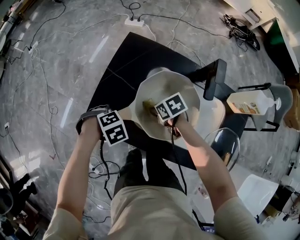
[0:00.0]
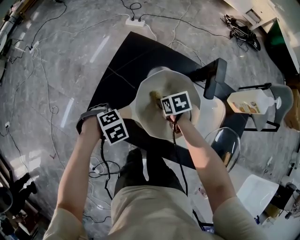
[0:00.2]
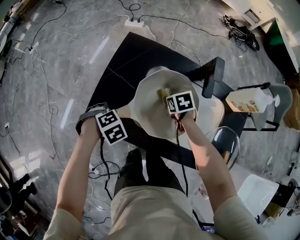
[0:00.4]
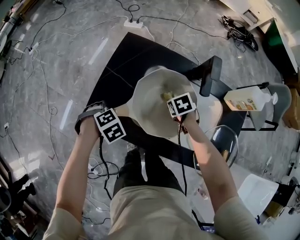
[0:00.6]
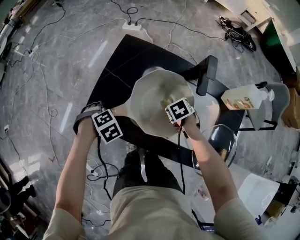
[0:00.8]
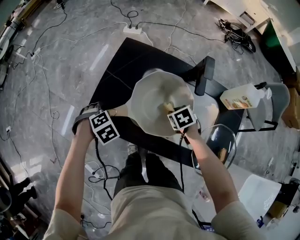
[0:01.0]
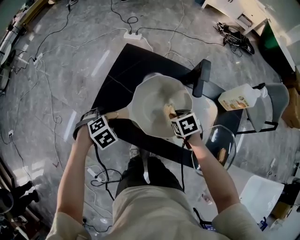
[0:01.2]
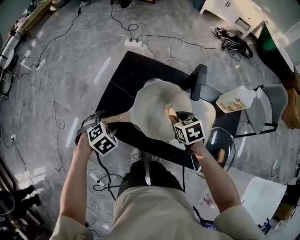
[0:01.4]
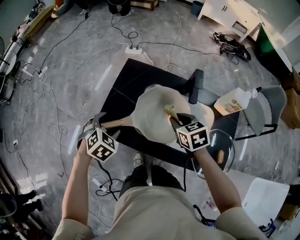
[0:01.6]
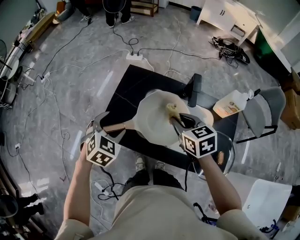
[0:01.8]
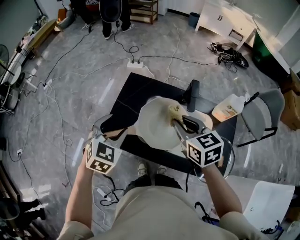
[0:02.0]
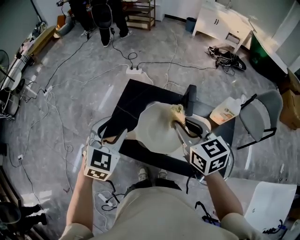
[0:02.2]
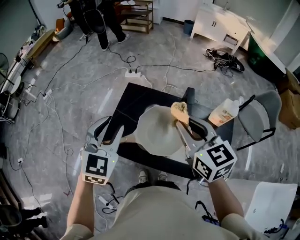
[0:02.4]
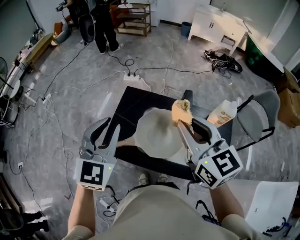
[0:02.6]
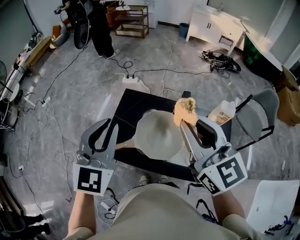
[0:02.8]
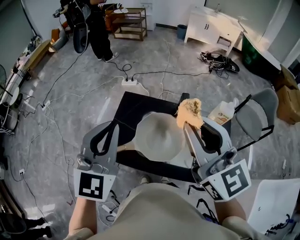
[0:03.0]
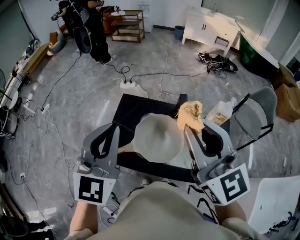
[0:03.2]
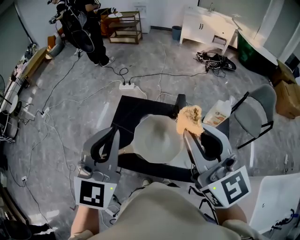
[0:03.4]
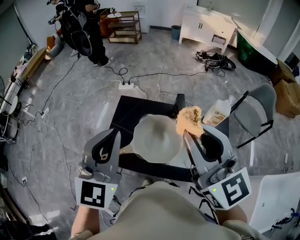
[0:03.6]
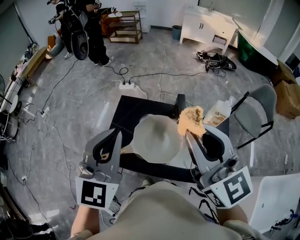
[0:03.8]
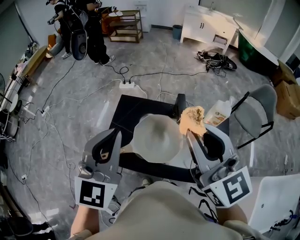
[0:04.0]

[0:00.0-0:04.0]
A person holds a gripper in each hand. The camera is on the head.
0:00.0 to 0:01.4: The left gripper goes approximately 10 cm upward, changes its angle by approximately 20 degrees, and opens its fingers. The right gripper is displaced upward by some 10 cm, and swivels roughly 30 degrees.
0:01.4 to 0:02.6: The two grippers go some 35 cm upward. The right gripper tips its fingers upward by some 50 degrees, while the left gripper angles its fingers upward, by about 60 degrees, and closes its fingers.
0:02.6 to 0:04.0: The two grippers go some 5 cm upward.

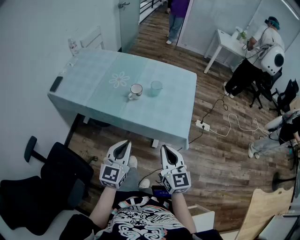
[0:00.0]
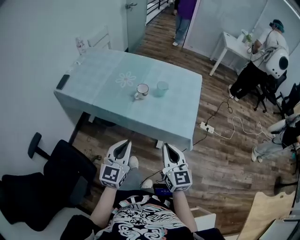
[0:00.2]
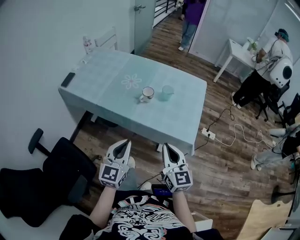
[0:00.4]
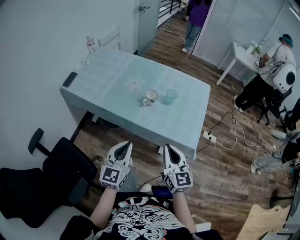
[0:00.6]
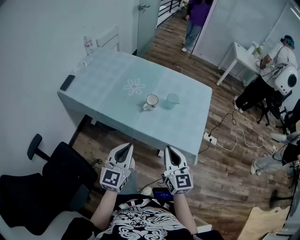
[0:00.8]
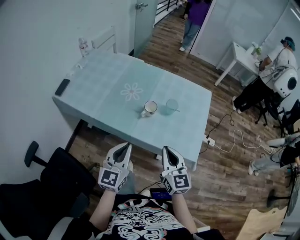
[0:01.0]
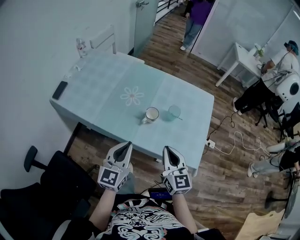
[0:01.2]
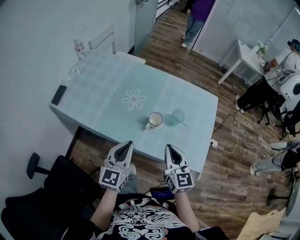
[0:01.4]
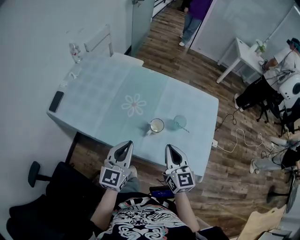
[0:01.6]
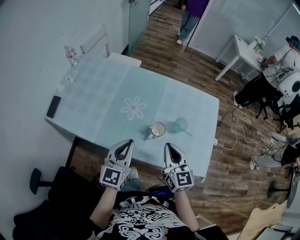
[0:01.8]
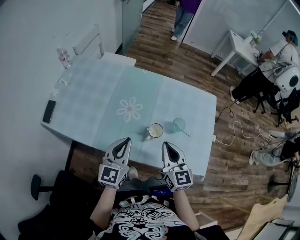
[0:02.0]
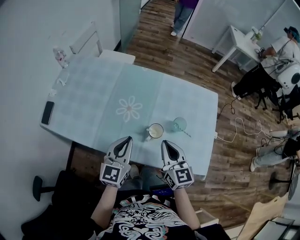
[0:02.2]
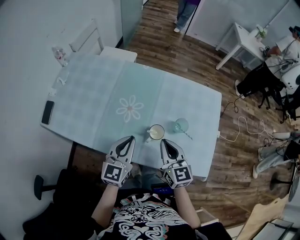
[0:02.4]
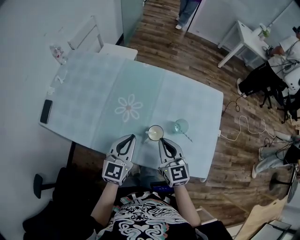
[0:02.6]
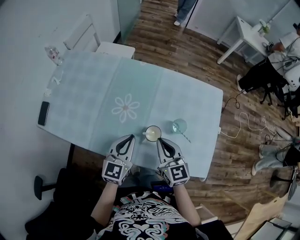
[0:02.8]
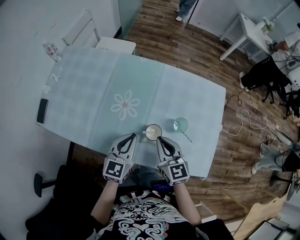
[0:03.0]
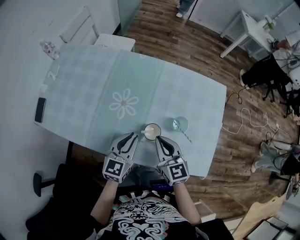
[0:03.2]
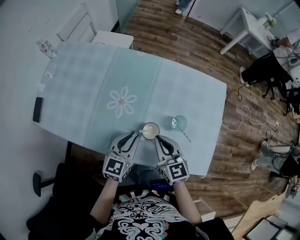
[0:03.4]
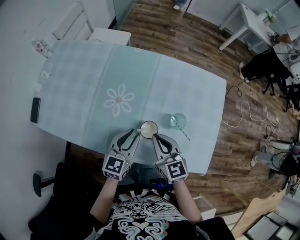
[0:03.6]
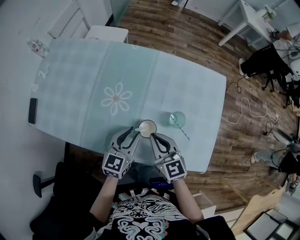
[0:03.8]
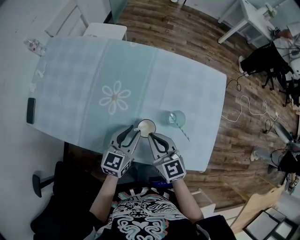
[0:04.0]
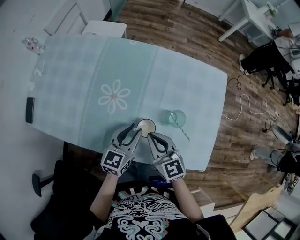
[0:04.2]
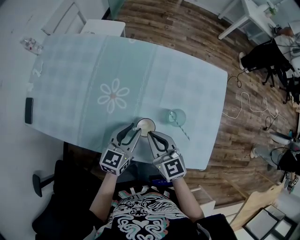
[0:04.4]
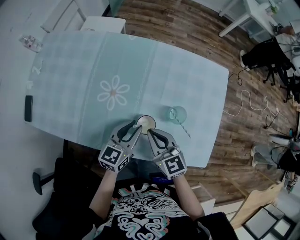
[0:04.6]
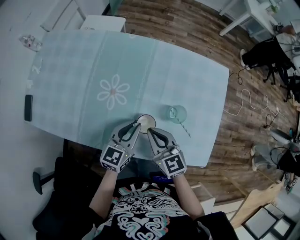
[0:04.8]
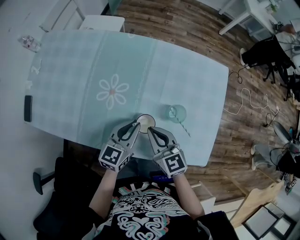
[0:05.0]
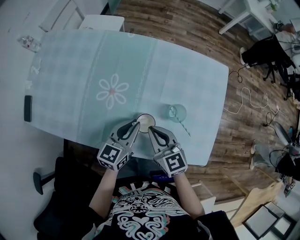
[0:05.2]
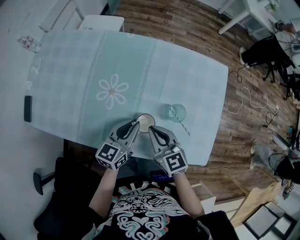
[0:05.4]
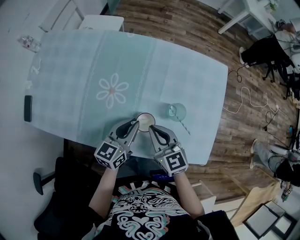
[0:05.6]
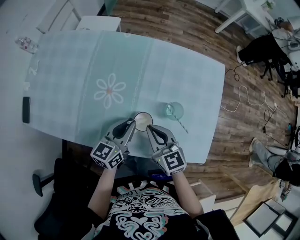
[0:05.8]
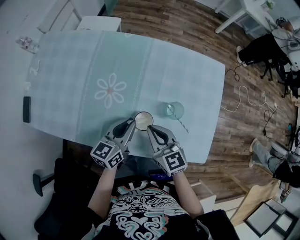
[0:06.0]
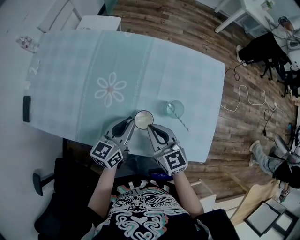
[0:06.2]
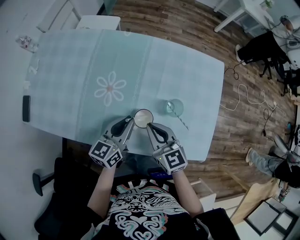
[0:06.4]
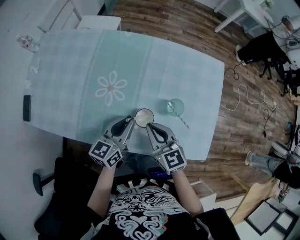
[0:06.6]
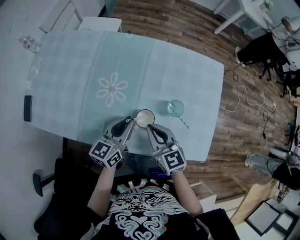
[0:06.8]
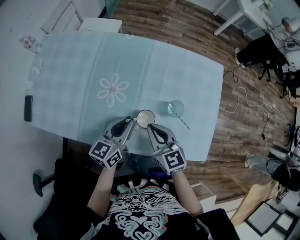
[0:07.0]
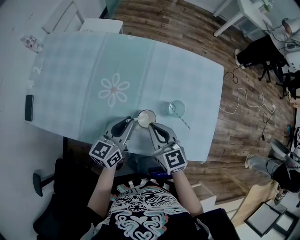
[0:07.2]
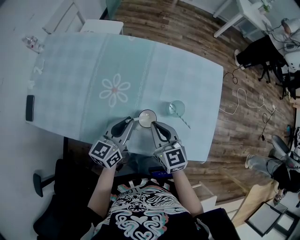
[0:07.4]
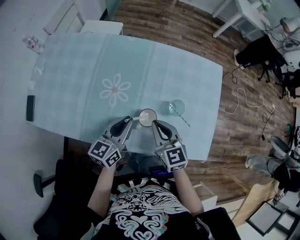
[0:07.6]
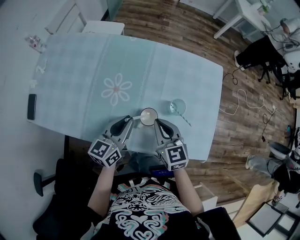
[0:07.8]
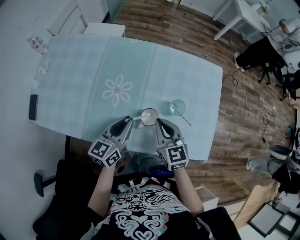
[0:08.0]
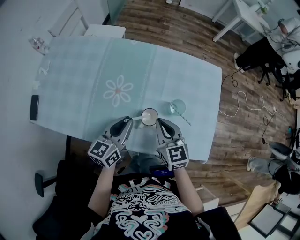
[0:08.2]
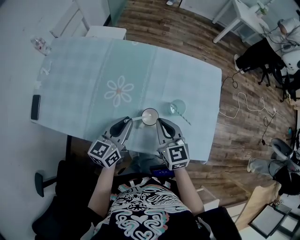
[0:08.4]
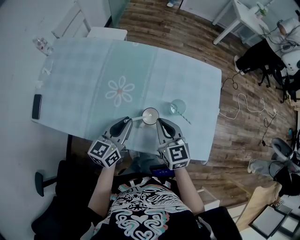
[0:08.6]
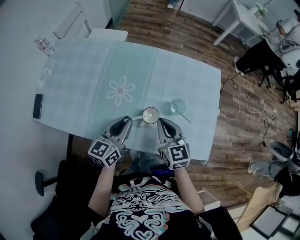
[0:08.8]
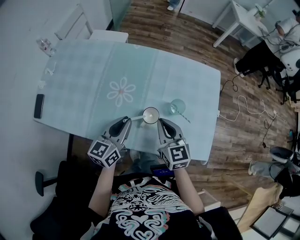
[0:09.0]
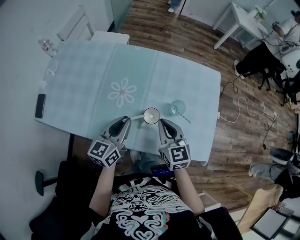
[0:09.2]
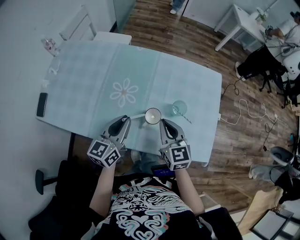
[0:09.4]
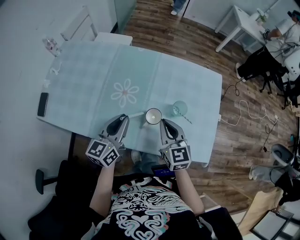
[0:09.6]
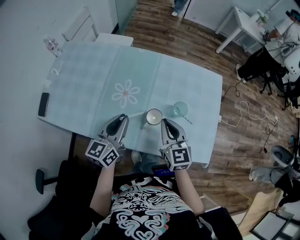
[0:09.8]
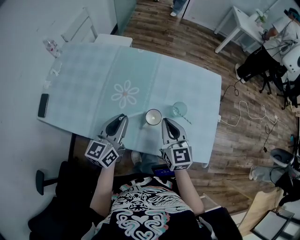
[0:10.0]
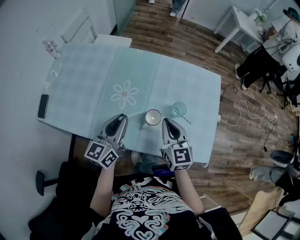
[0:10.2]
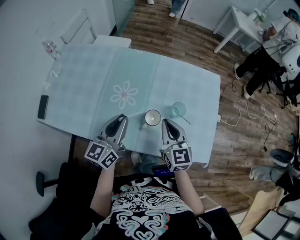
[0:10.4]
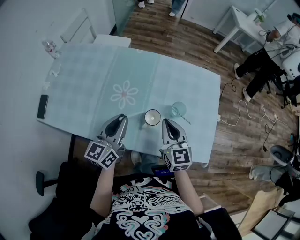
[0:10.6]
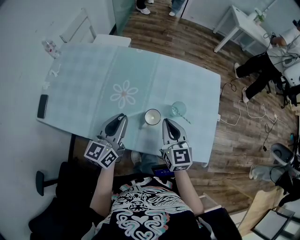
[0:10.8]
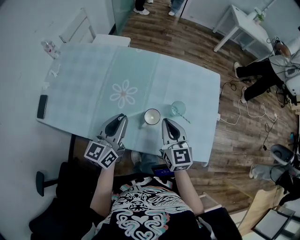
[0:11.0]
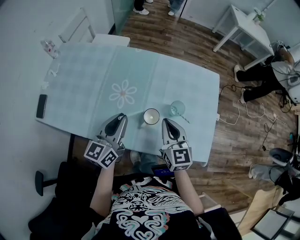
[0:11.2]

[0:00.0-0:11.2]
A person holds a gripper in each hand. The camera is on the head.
0:00.0 to 0:01.6: The left gripper heads forward and to the left, covering roughly 25 cm; the right gripper moves forward, approximately 25 cm.
0:01.6 to 0:03.2: The right gripper heads forward and downward, covering roughly 10 cm. Meanwhile the left gripper shifts about 15 cm downward and forward.
0:03.2 to 0:04.8: The left gripper changes place by approximately 5 cm.
0:04.8 to 0:06.4: The grippers stay close to where they were, moving slightly.
0:06.4 to 0:08.0: The grippers move only a little.
0:08.0 to 0:09.6: The left gripper moves roughly 5 cm.
0:09.6 to 0:11.2: There are only small adjustments of the grippers.

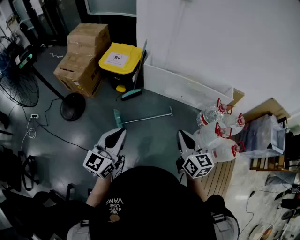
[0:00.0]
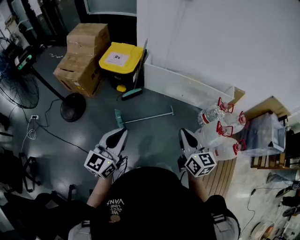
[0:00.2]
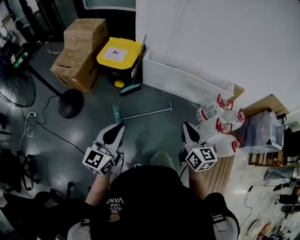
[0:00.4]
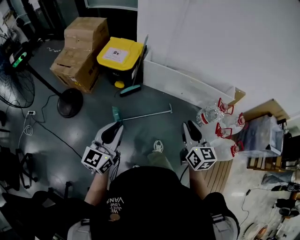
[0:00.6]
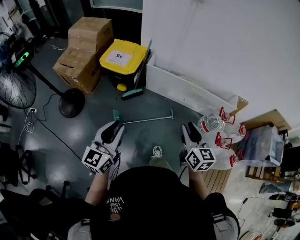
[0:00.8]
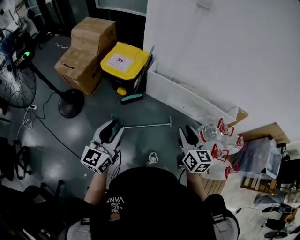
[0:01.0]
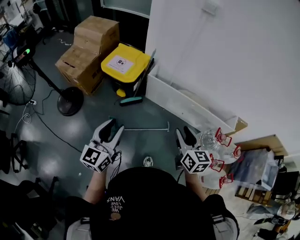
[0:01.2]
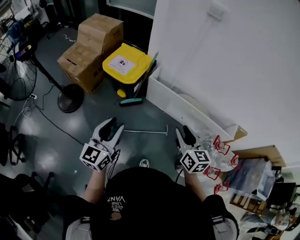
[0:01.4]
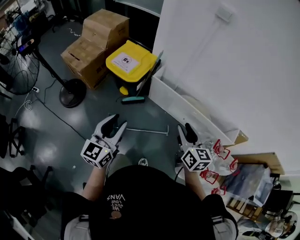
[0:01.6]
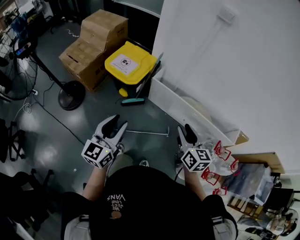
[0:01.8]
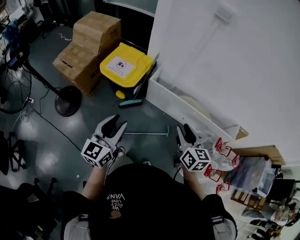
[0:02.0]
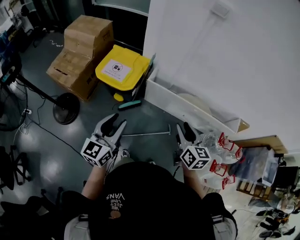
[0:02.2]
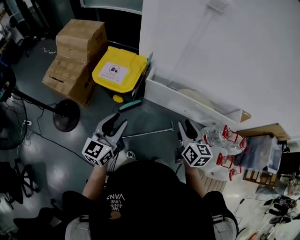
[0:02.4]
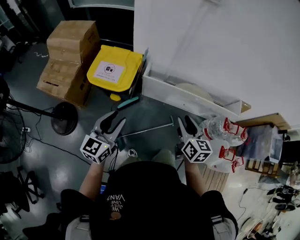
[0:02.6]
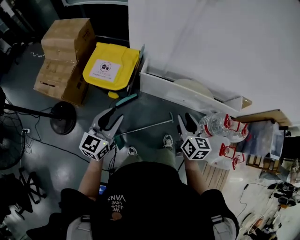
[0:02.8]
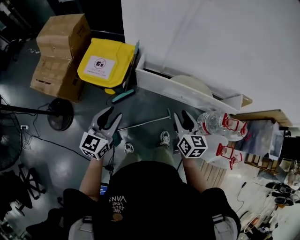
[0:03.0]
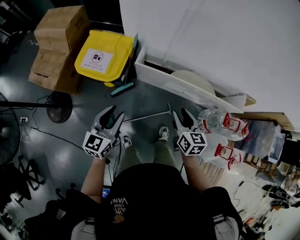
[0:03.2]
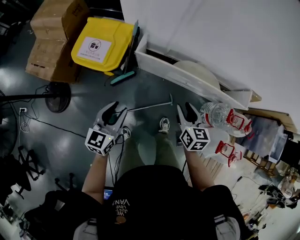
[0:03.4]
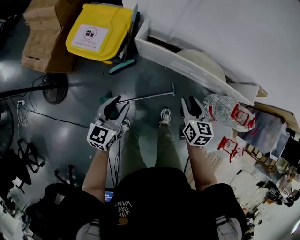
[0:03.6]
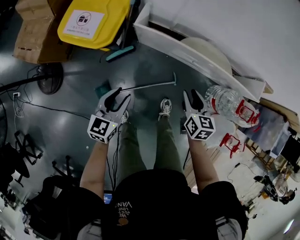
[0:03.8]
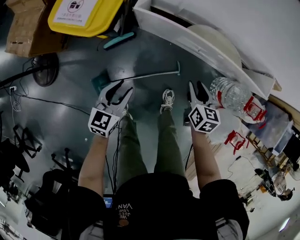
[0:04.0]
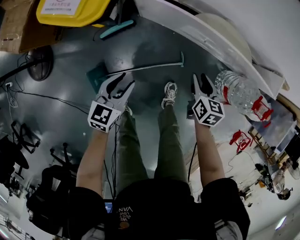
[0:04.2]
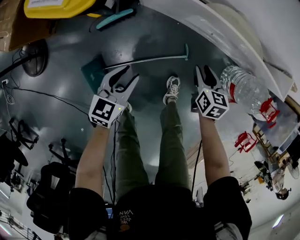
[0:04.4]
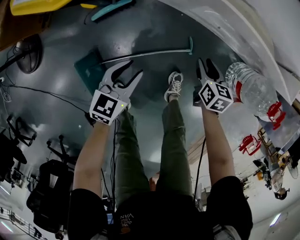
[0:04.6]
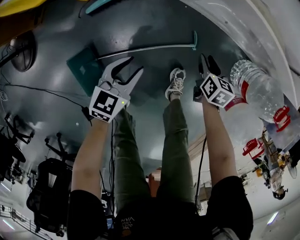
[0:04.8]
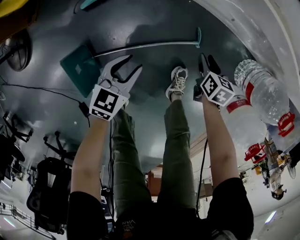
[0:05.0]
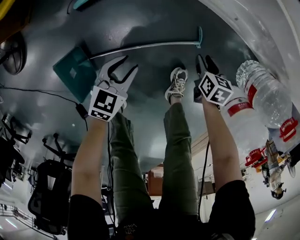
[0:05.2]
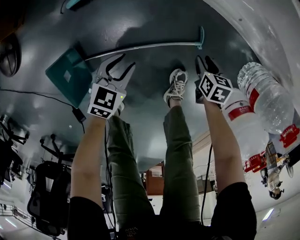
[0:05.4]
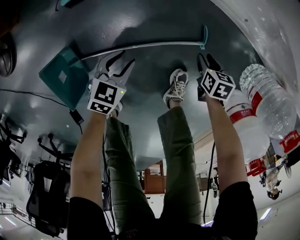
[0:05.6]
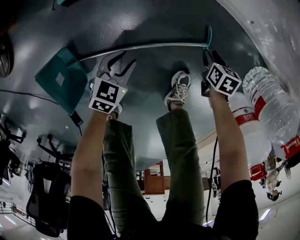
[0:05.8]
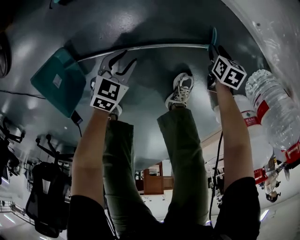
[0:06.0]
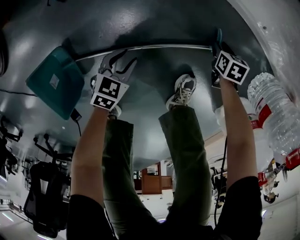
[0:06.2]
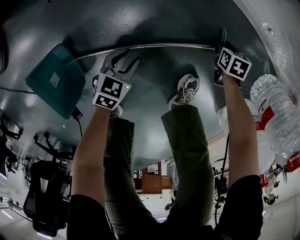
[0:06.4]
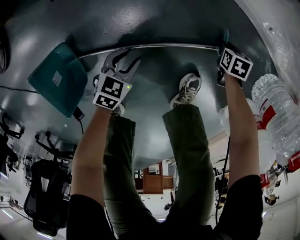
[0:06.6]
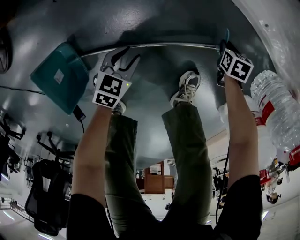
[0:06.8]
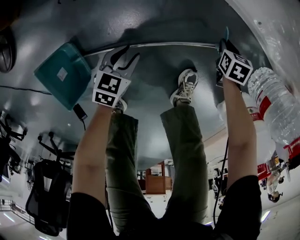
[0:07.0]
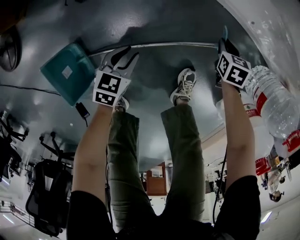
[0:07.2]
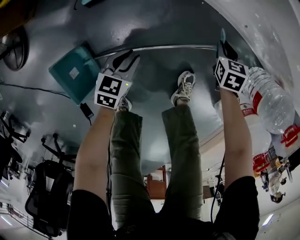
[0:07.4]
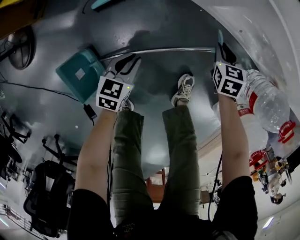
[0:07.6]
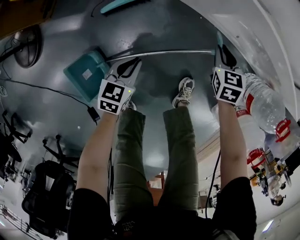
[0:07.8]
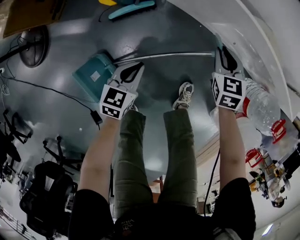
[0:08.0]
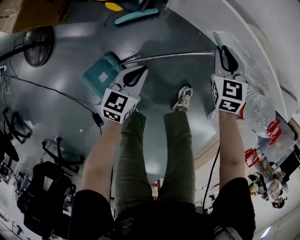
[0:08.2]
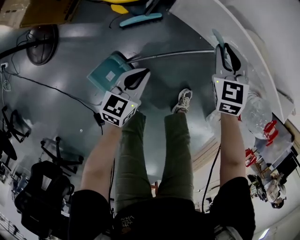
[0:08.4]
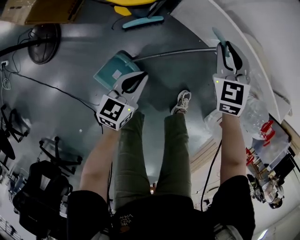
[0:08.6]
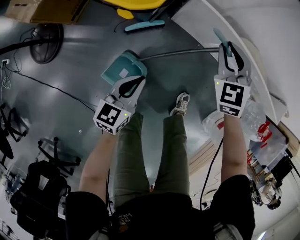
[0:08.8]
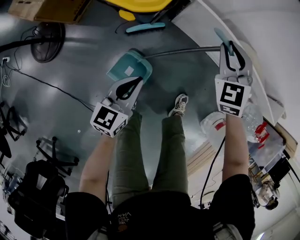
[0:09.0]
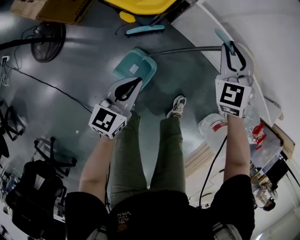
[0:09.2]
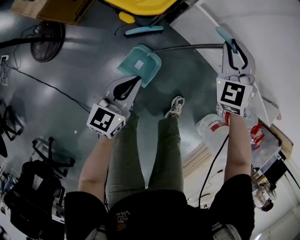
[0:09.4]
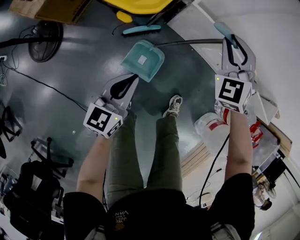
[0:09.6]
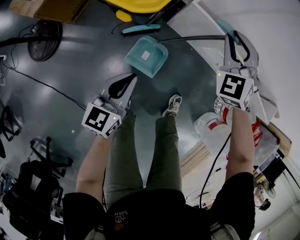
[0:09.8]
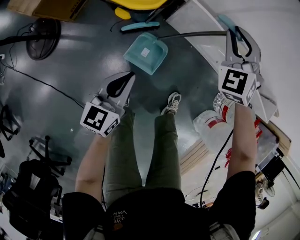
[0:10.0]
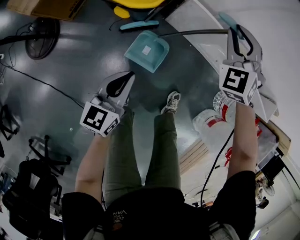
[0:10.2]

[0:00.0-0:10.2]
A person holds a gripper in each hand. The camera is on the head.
0:00.0 to 0:01.4: The grippers both shift forward by approximately 25 cm. The right gripper opens up. Meanwhile the left gripper opens.
0:01.4 to 0:03.0: Both grippers move forward and downward, roughly 20 cm. The left gripper turns by approximately 20 degrees.
0:03.0 to 0:04.4: Both grippers move downward, approximately 40 cm. The left gripper turns by roughly 20 degrees; the right gripper turns by some 30 degrees.
0:04.4 to 0:05.8: The grippers both shift downward by some 35 cm. The left gripper turns by about 20 degrees; the right gripper changes its angle by roughly 20 degrees.
0:05.8 to 0:07.2: The right gripper changes place by roughly 10 cm, and closes its fingers, while the left gripper goes downward and returns, some 5 cm each way.
0:07.2 to 0:08.8: The right gripper shifts roughly 50 cm upward and to the left, and angles its fingers upward, by some 30 degrees. The left gripper goes about 35 cm upward, turns by roughly 30 degrees, and closes.
0:08.8 to 0:10.2: Both grippers move upward, some 5 cm. The right gripper turns by approximately 20 degrees.
